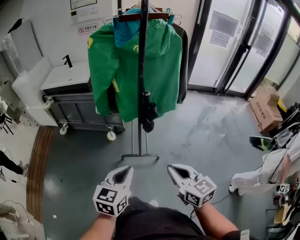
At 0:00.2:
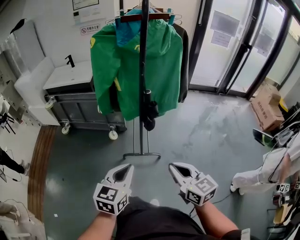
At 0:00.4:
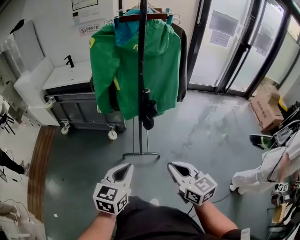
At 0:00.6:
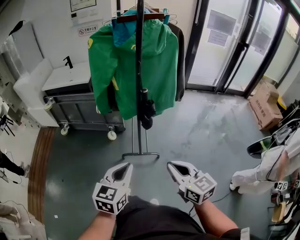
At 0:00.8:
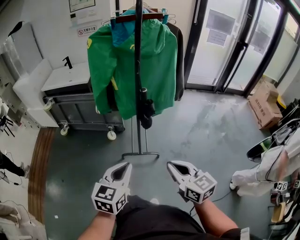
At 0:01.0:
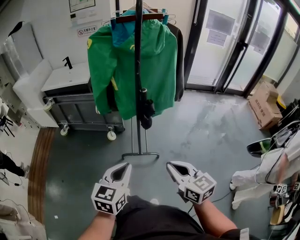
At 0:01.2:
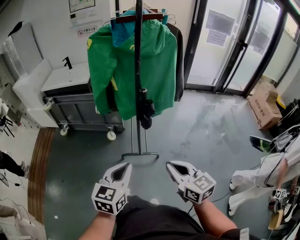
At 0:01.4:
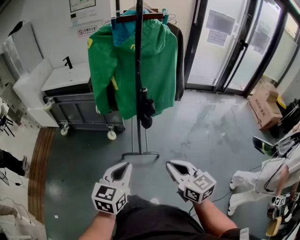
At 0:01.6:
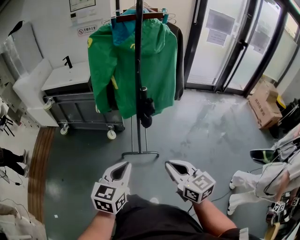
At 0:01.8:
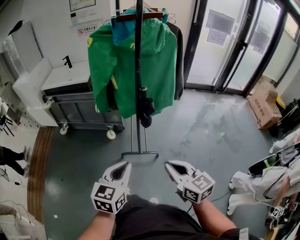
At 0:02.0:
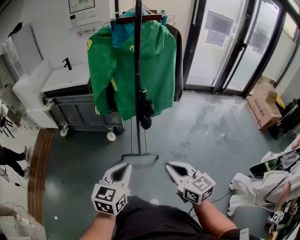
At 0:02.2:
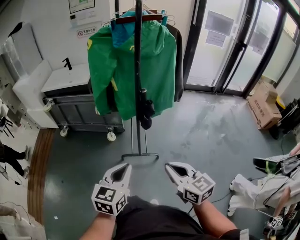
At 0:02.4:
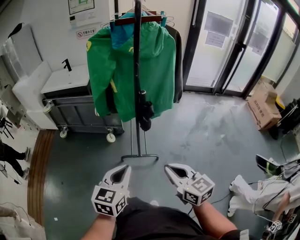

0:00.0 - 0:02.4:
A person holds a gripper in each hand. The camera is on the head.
0:00.0 - 0:01.2: The grippers make only small movements.
0:01.2 - 0:02.4: The two grippers keep their place.

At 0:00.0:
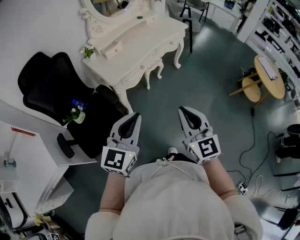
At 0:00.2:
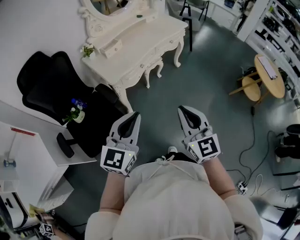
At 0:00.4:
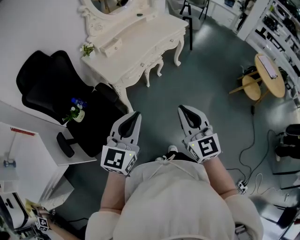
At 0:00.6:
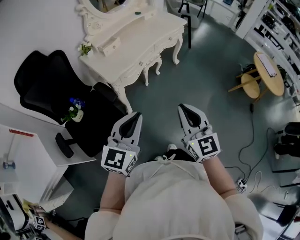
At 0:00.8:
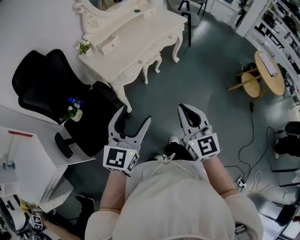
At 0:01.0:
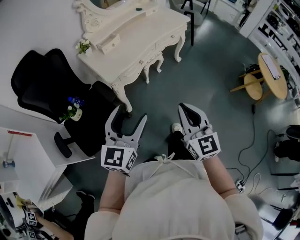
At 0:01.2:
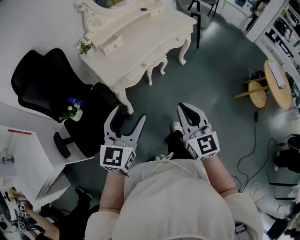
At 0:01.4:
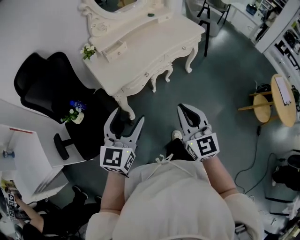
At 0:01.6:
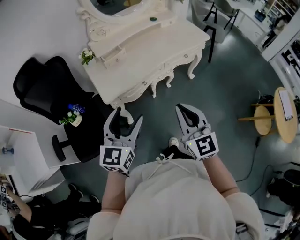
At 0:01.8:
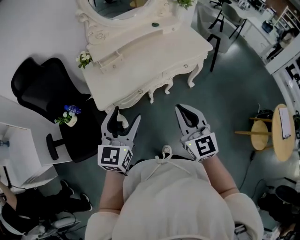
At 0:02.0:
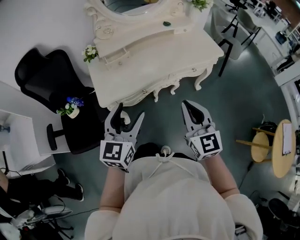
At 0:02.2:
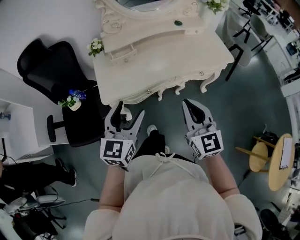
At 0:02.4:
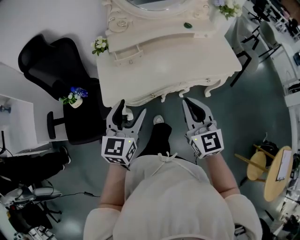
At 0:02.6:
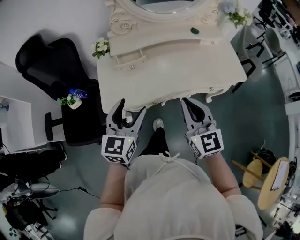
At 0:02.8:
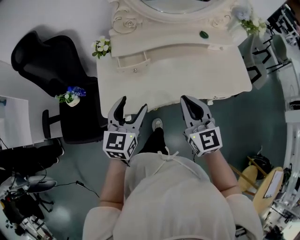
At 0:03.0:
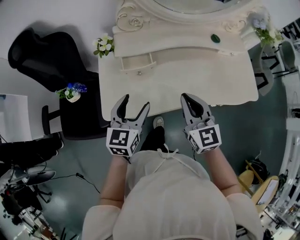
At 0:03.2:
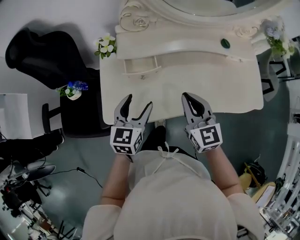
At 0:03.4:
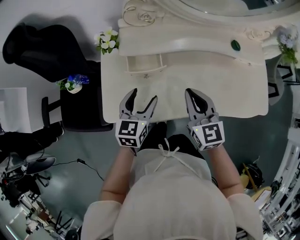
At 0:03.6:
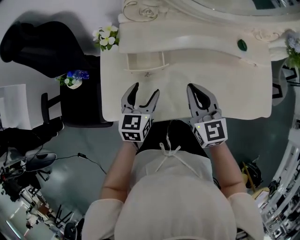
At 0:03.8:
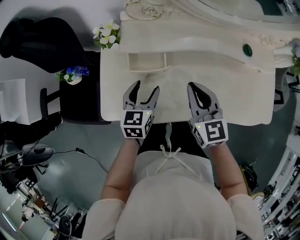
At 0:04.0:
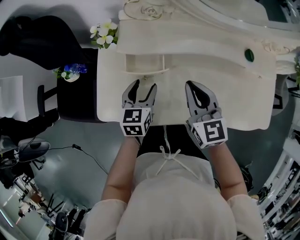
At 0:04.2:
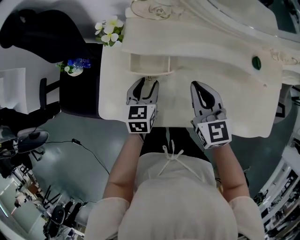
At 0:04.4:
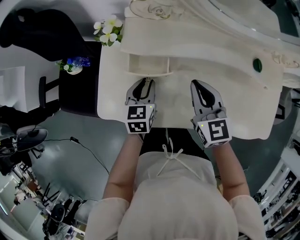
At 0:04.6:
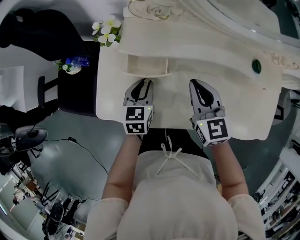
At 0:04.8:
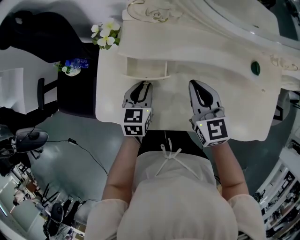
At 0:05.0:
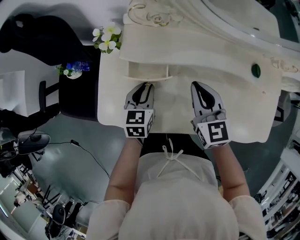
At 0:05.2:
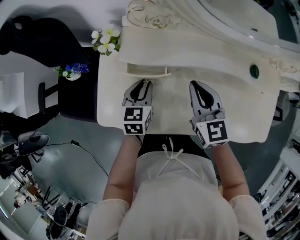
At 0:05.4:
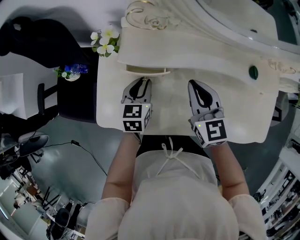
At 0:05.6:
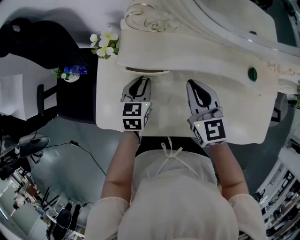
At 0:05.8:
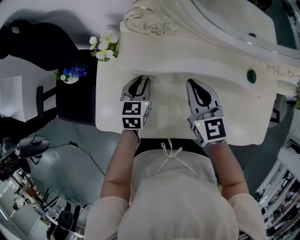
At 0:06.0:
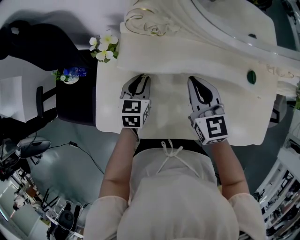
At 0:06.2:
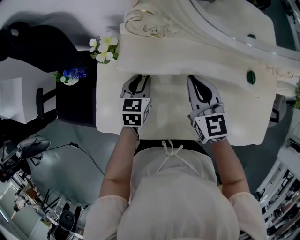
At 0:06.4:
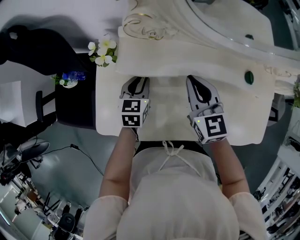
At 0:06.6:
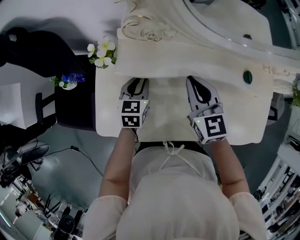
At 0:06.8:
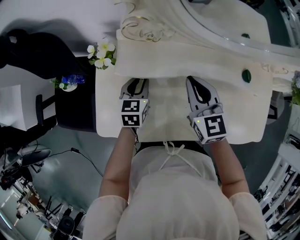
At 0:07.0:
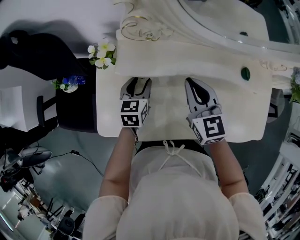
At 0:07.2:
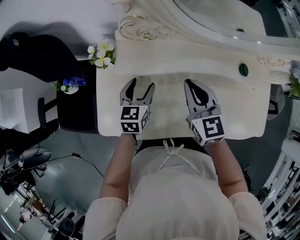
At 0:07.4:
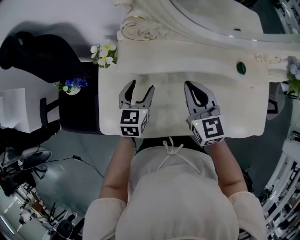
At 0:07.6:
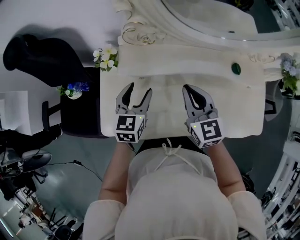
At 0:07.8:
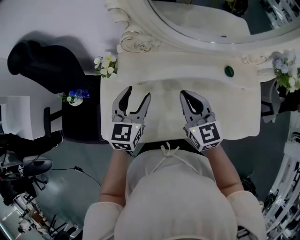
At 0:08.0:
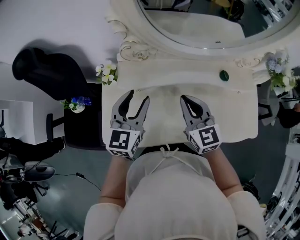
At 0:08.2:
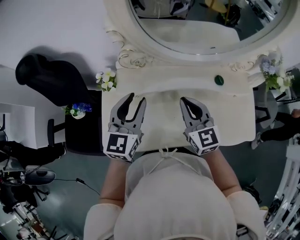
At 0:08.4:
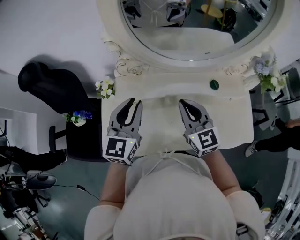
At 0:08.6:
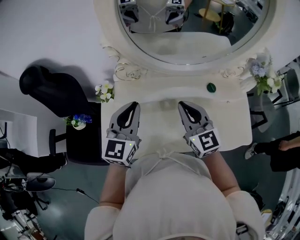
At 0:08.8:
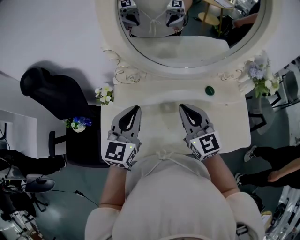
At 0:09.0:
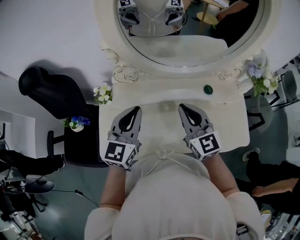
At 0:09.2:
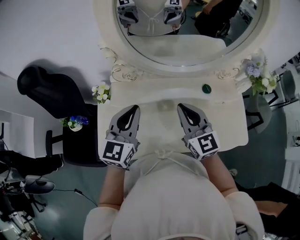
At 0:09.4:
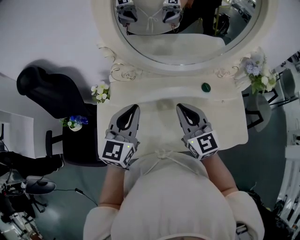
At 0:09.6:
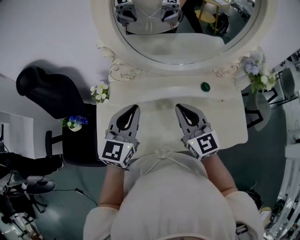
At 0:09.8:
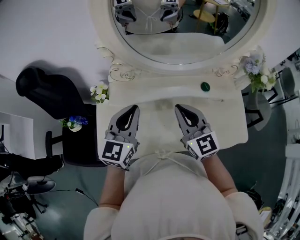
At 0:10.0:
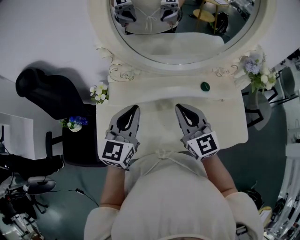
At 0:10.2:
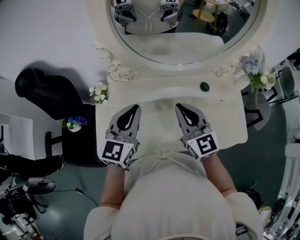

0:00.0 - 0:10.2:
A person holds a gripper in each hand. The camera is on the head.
0:00.0 - 0:01.4: Both grippers travel together forward, approximately 15 cm. The left gripper opens its fingers.
0:01.4 - 0:03.0: The left gripper moves approximately 40 cm, and rotates approximately 40 degrees; the right gripper changes place by about 50 cm, and changes its angle by approximately 30 degrees.
0:03.0 - 0:04.4: The left gripper goes roughly 20 cm downward and forward, turns by some 30 degrees, and closes; the right gripper moves forward and downward, roughly 20 cm.
0:04.4 - 0:05.8: Both grippers move forward, roughly 5 cm.
0:05.8 - 0:07.2: The left gripper opens.
0:07.2 - 0:08.8: The right gripper heads upward and to the right, covering some 15 cm, while the left gripper moves upward, approximately 25 cm, rotates approximately 30 degrees, and closes up.
0:08.8 - 0:10.2: The grippers make only small movements.

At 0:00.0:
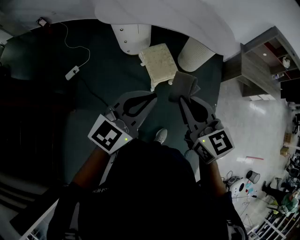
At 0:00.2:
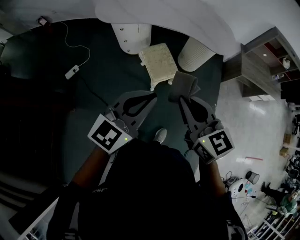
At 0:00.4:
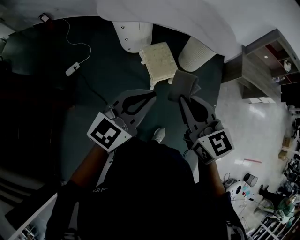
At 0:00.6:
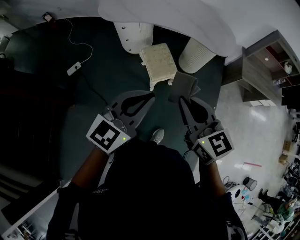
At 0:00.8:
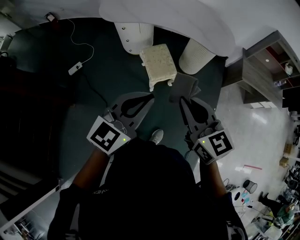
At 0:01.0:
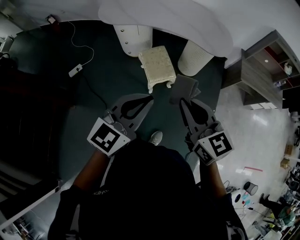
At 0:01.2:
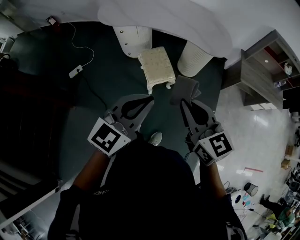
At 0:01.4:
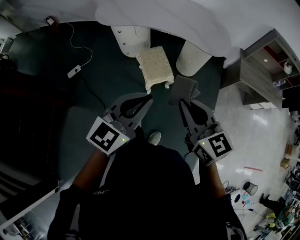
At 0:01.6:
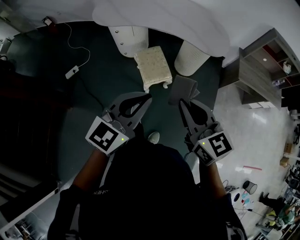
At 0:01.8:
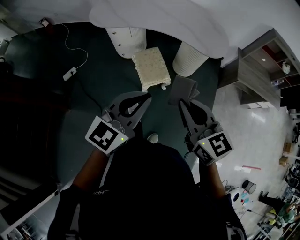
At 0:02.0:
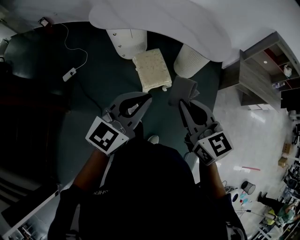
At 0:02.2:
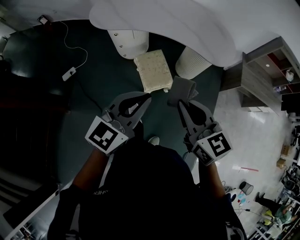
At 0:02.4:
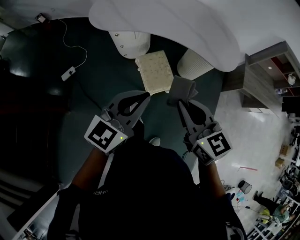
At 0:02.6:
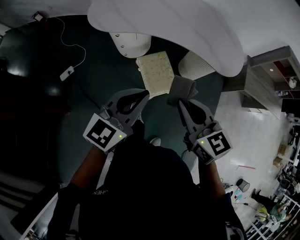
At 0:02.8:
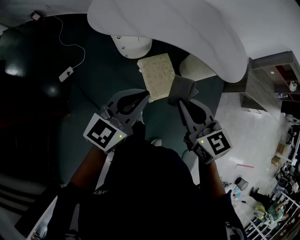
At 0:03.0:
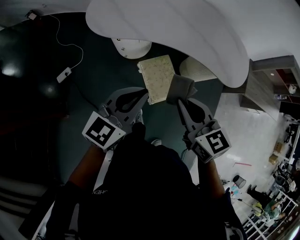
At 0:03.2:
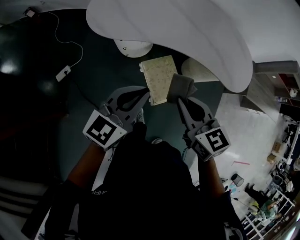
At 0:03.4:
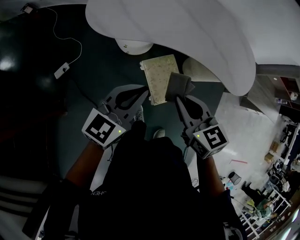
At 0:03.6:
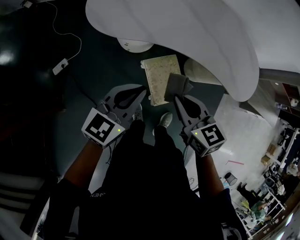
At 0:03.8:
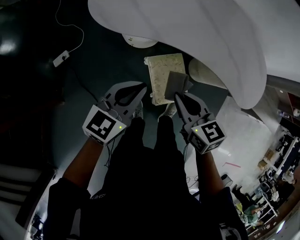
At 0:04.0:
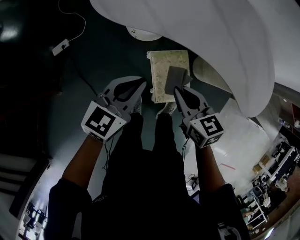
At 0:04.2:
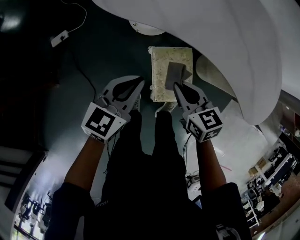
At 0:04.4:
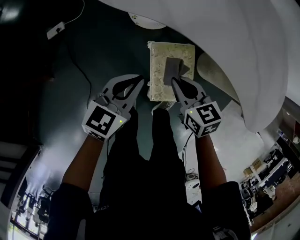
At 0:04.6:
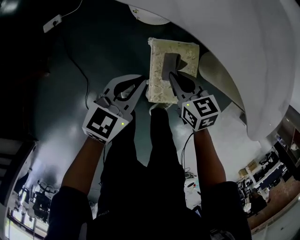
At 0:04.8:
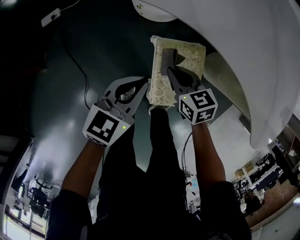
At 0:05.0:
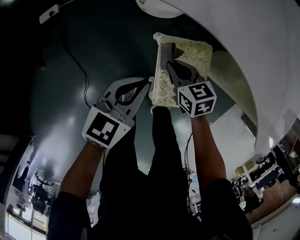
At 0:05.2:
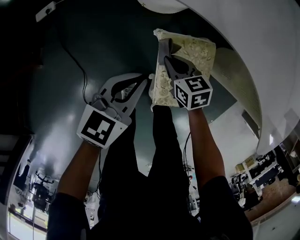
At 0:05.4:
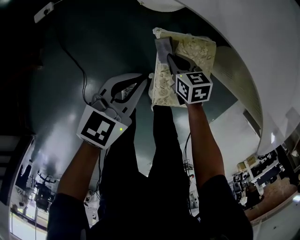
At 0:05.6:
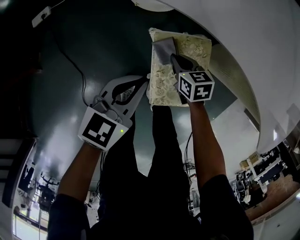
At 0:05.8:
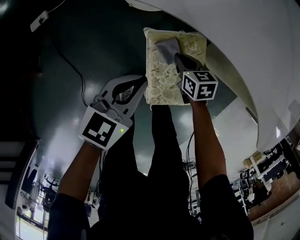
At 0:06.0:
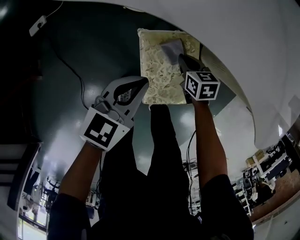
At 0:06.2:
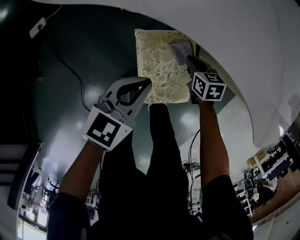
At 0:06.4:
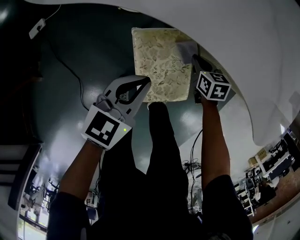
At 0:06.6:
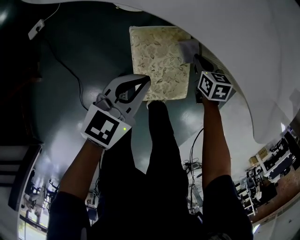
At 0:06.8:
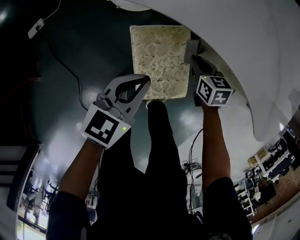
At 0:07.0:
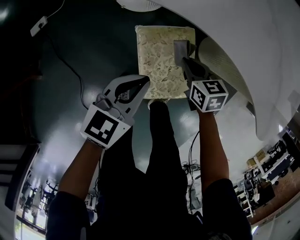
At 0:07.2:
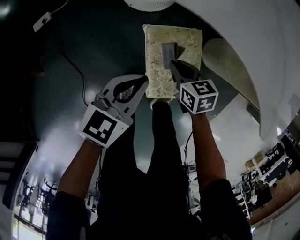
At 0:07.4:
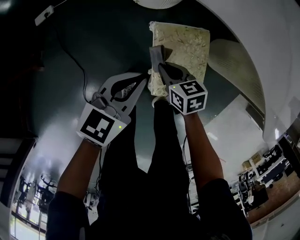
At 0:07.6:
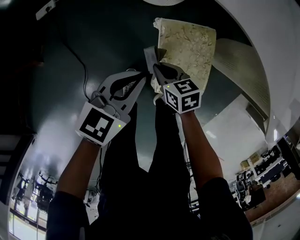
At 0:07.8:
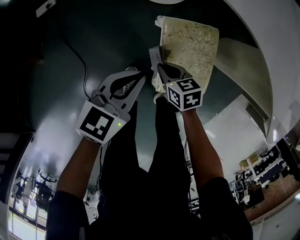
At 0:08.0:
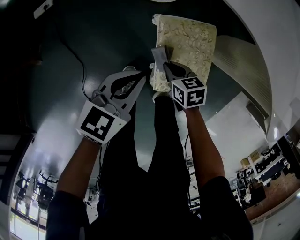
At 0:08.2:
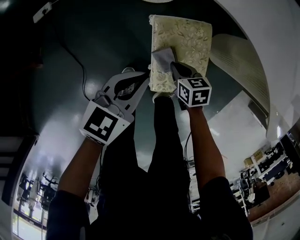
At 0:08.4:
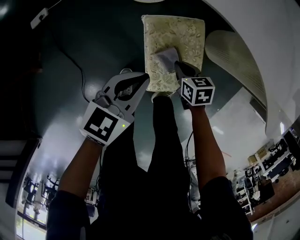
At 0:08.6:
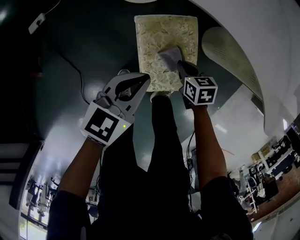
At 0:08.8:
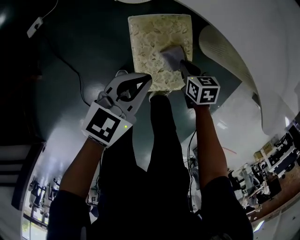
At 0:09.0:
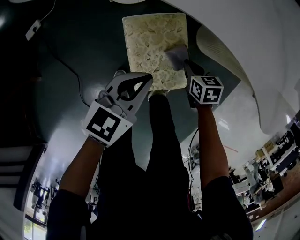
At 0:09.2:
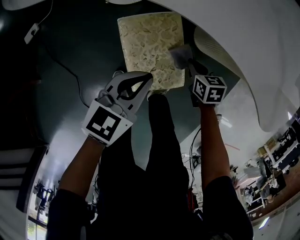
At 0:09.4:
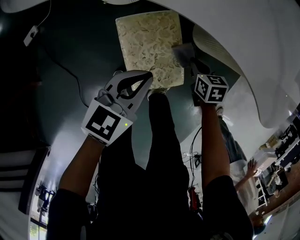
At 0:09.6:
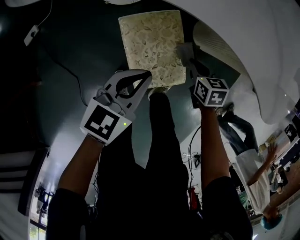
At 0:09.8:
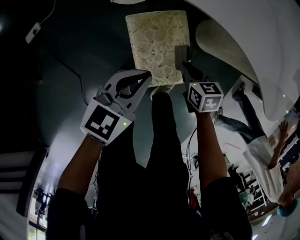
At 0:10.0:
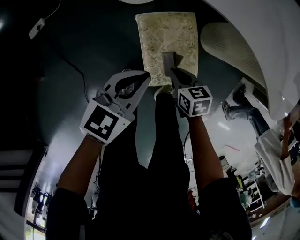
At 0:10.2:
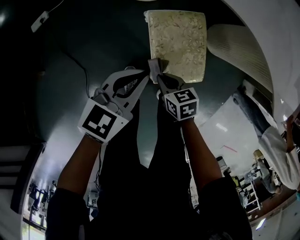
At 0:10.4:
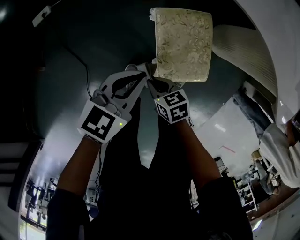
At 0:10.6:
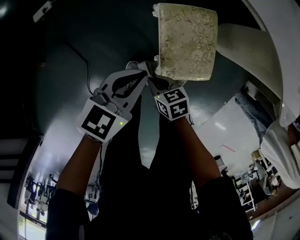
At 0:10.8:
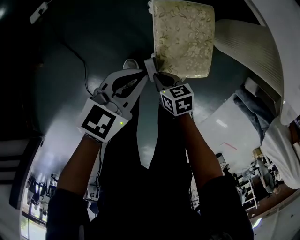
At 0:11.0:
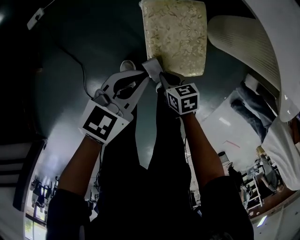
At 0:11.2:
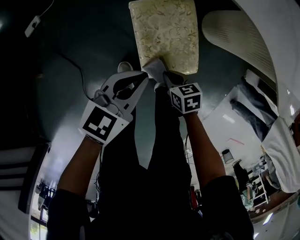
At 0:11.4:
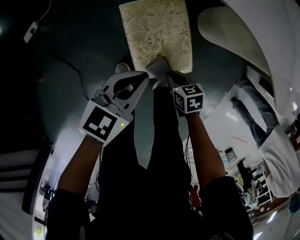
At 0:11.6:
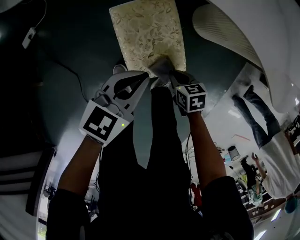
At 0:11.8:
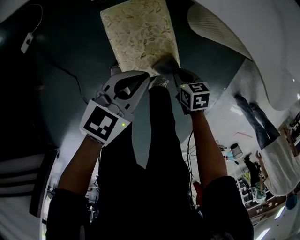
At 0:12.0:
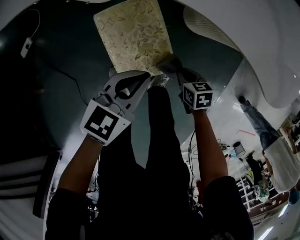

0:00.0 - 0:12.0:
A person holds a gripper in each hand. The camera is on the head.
0:00.0 - 0:01.6: Both grippers move to the right, roughly 10 cm.
0:01.6 - 0:03.0: The two grippers go roughly 30 cm forward and to the left.
0:03.0 - 0:04.4: The two grippers go approximately 35 cm downward and forward. The right gripper changes its angle by approximately 30 degrees. The left gripper swivels approximately 30 degrees.
0:04.4 - 0:06.0: The right gripper goes about 25 cm downward, and changes its angle by about 20 degrees. The left gripper is displaced downward and to the right by about 15 cm.
0:06.0 - 0:07.6: The right gripper is displaced to the left and backward by about 20 cm. Meanwhile the left gripper moves to the left and backward, about 10 cm.
0:07.6 - 0:09.0: The right gripper travels to the right by approximately 25 cm, and swivels about 20 degrees; the left gripper travels to the right by roughly 15 cm.
0:09.0 - 0:10.4: The left gripper shifts some 15 cm to the left and backward, while the right gripper shifts about 30 cm to the left and backward, and swivels some 20 degrees.
0:10.4 - 0:12.0: The grippers both shift to the right by approximately 25 cm. The right gripper rotates some 30 degrees.
